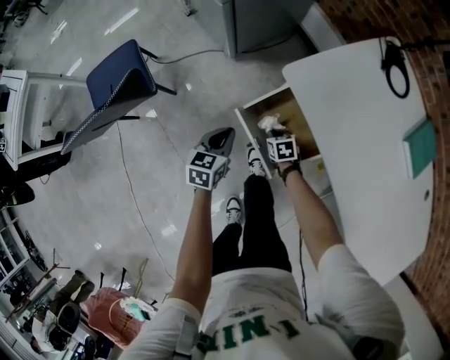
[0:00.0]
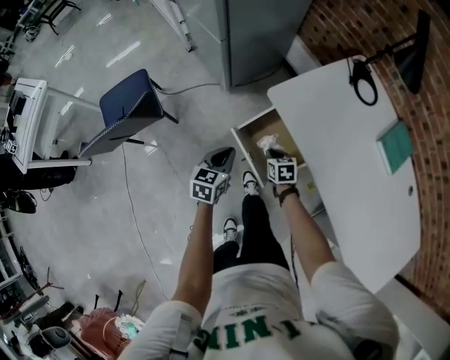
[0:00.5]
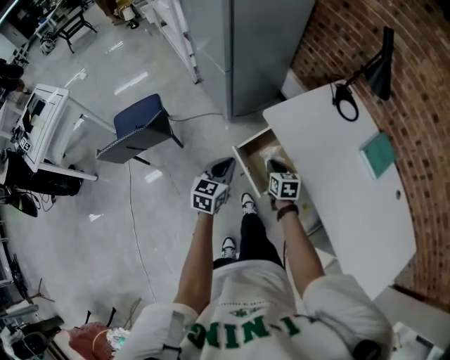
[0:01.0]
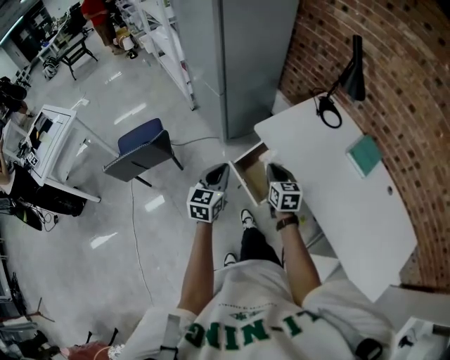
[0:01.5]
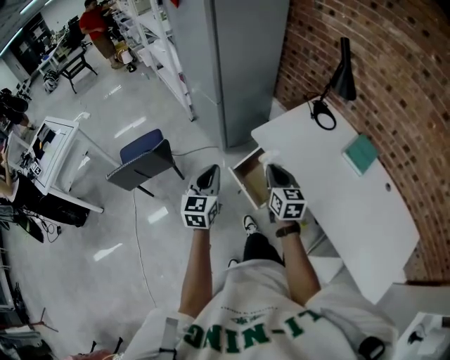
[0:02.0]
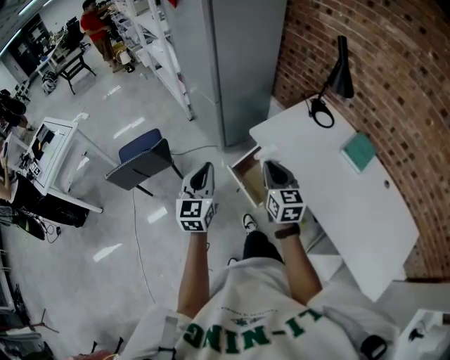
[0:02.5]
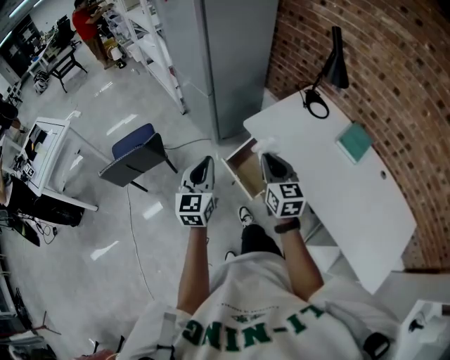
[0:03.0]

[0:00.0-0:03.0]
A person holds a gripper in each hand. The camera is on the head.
0:00.0 to 0:01.5: Both grippers travel together upward, about 35 cm. The left gripper rotates some 20 degrees. Meanwhile the right gripper tips its fingers upward by about 40 degrees.
0:01.5 to 0:03.0: The right gripper shifts some 15 cm upward and backward, while the left gripper heads upward, covering some 10 cm.

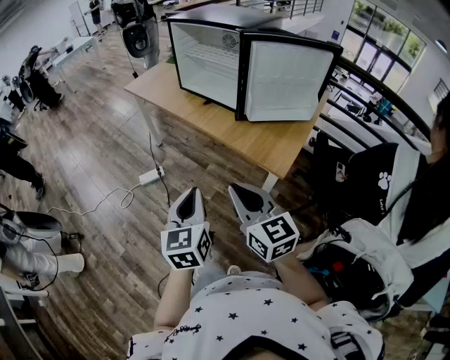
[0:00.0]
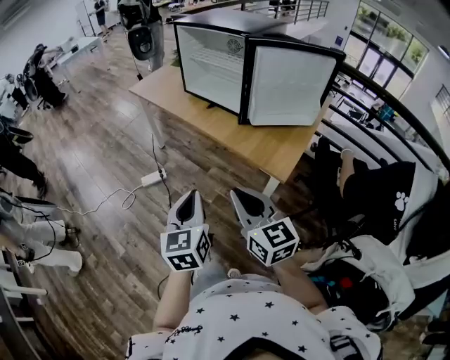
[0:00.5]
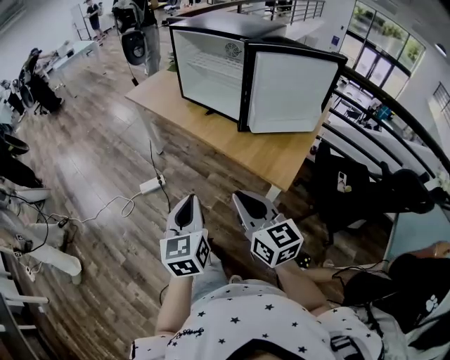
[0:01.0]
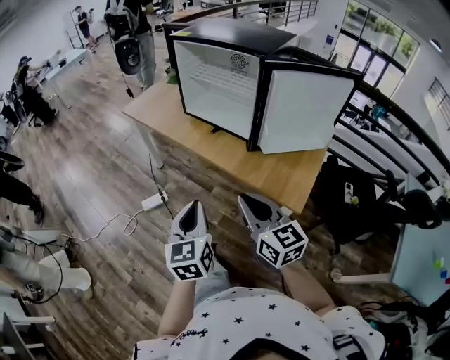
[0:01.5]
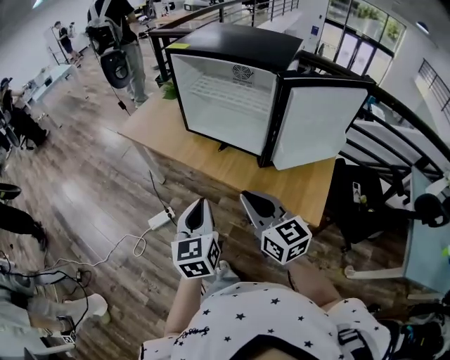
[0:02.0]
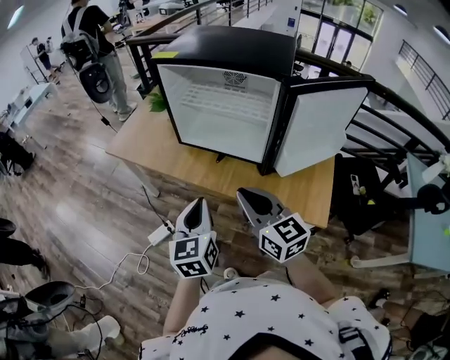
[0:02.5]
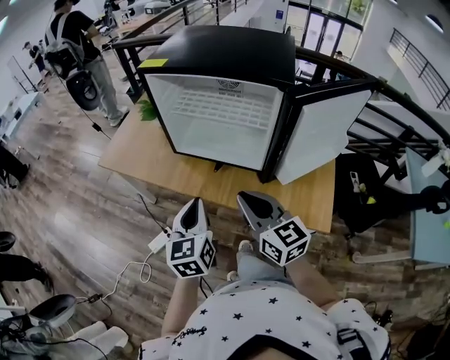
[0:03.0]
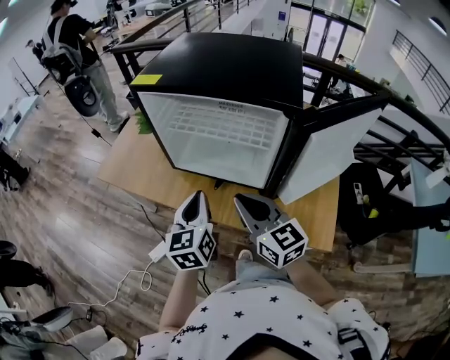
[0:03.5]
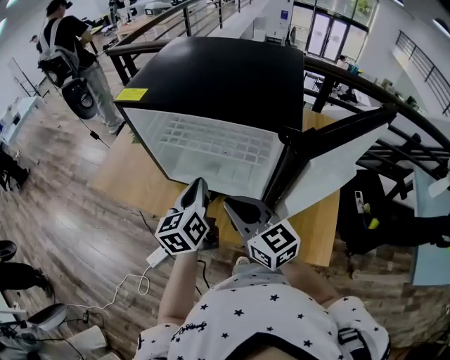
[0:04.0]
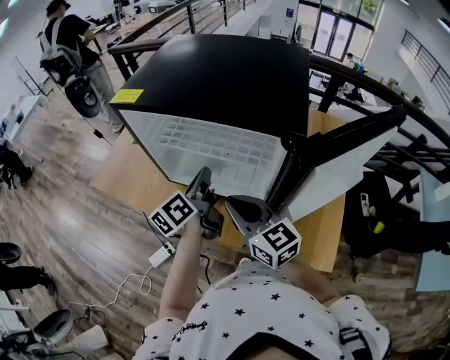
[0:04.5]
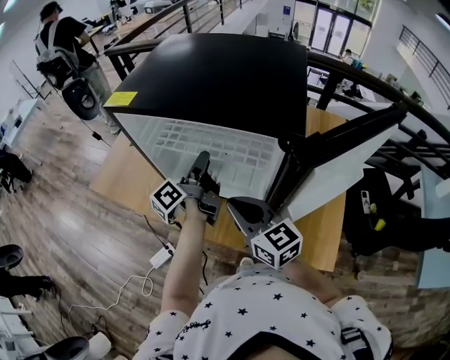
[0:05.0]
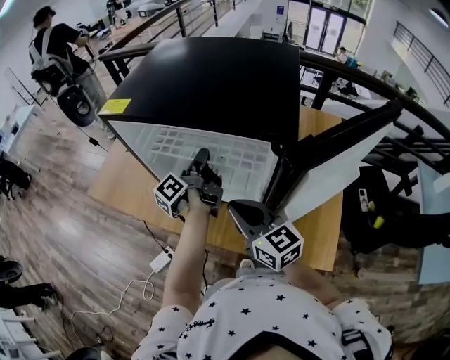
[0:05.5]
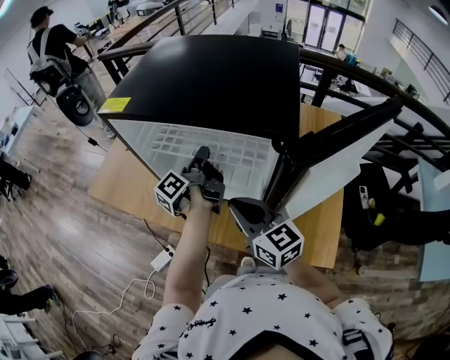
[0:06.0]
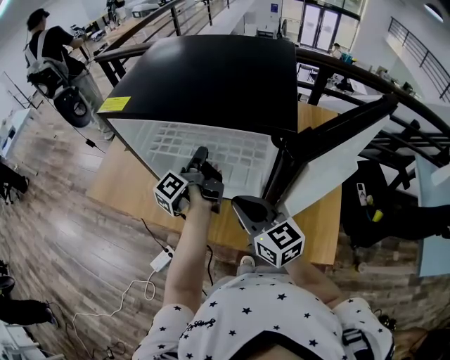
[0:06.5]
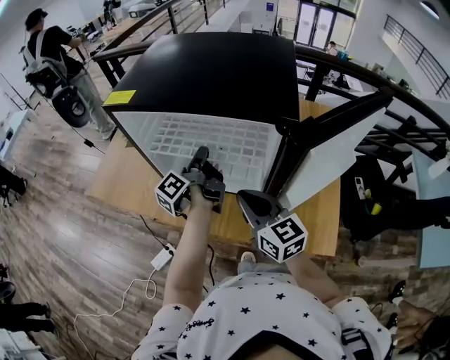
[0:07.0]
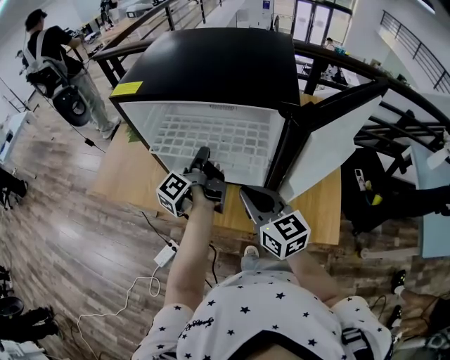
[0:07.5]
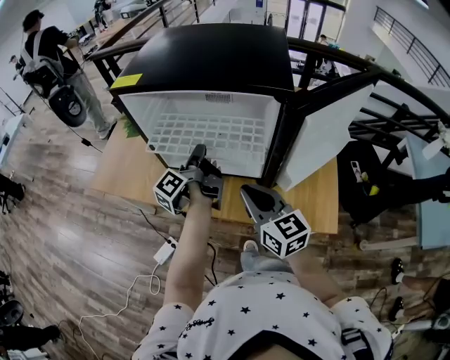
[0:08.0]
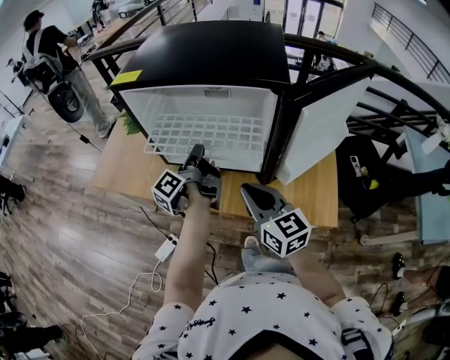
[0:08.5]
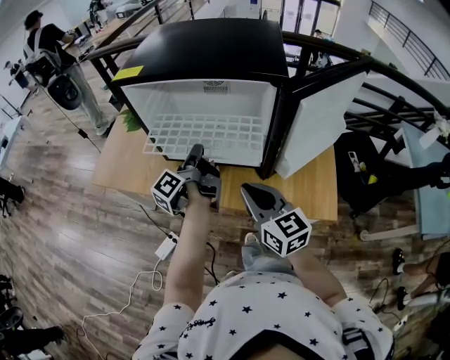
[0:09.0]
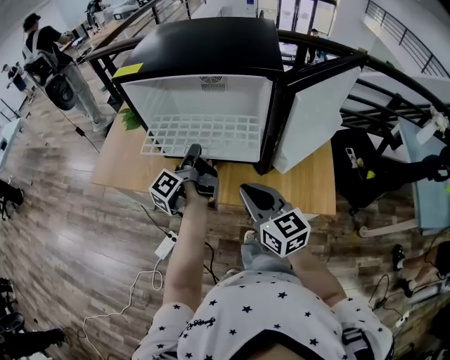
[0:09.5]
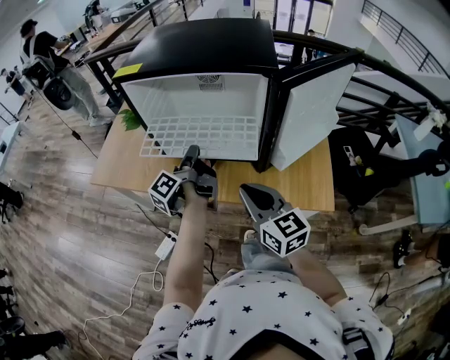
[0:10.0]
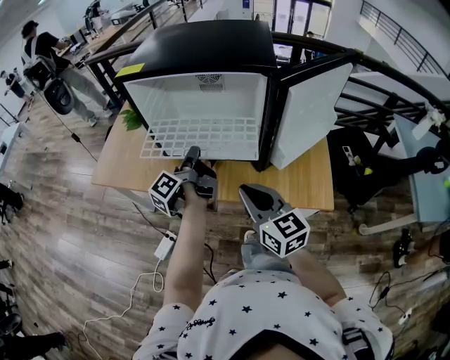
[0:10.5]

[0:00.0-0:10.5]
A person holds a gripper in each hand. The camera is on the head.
0:00.0 to 0:02.0: Both grippers travel together forward, about 25 cm.
0:02.0 to 0:04.0: Both grippers move forward, roughly 25 cm. The left gripper turns by some 20 degrees.
0:04.0 to 0:06.5: The right gripper changes place by roughly 5 cm; the left gripper shifts about 10 cm forward, twists about 60 degrees counterclockwise, seen from behind, and opens and closes again.
0:06.5 to 0:08.5: The two grippers go some 10 cm backward.
0:08.5 to 0:10.5: Both grippers travel together backward, some 5 cm.

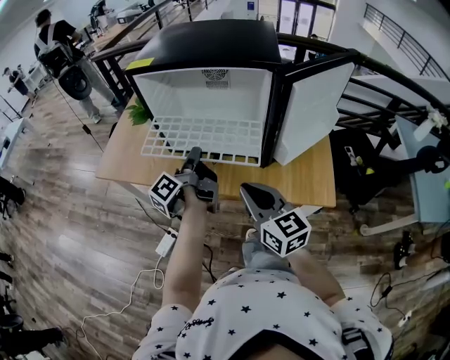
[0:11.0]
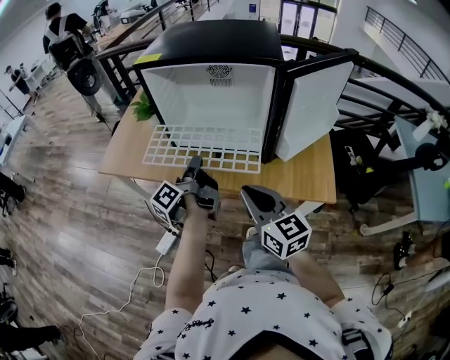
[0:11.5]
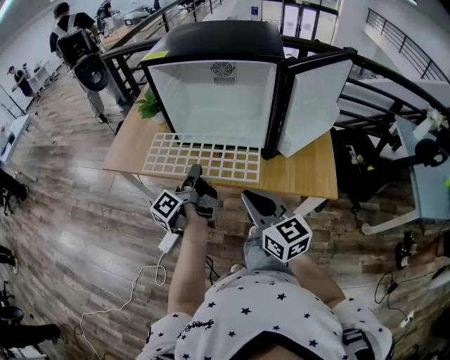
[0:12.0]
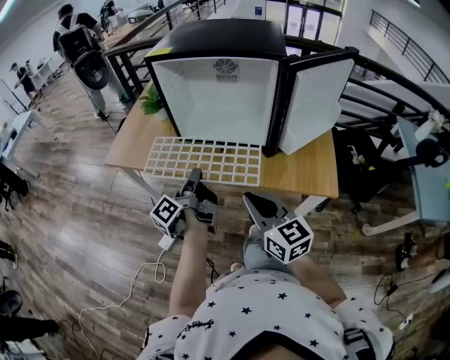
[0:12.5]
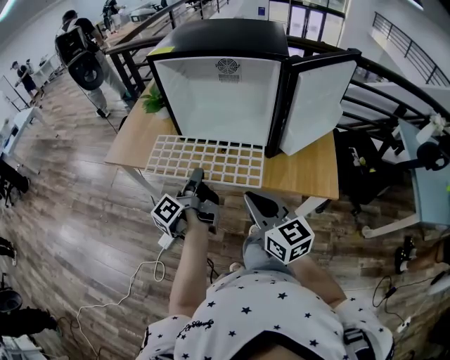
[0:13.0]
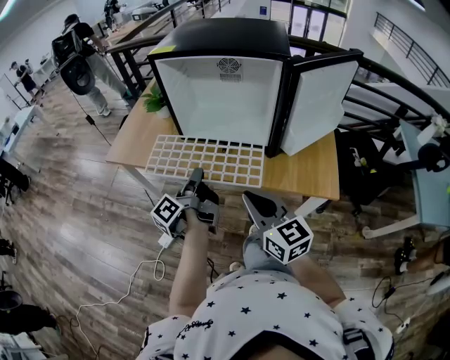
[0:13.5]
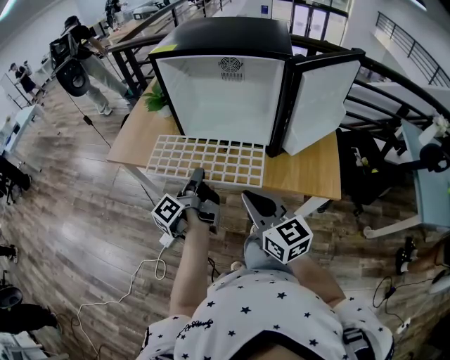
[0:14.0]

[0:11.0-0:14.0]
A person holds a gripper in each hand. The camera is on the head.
0:11.0 to 0:12.5: The right gripper goes approximately 10 cm backward. Meanwhile the left gripper moves backward and to the left, about 10 cm.
0:12.5 to 0:14.0: Both grippers stay put.

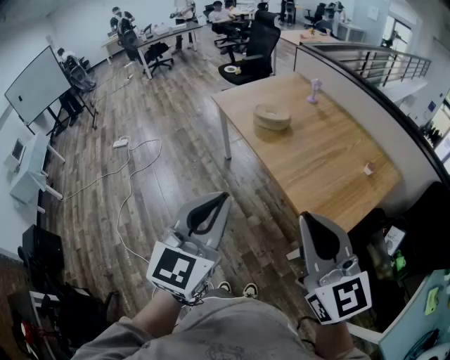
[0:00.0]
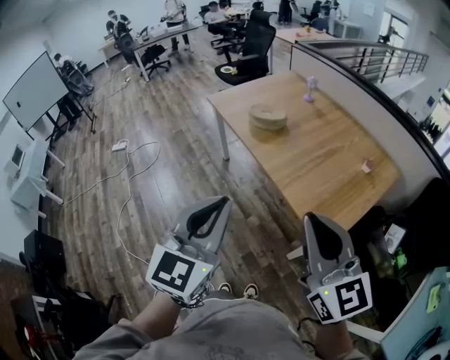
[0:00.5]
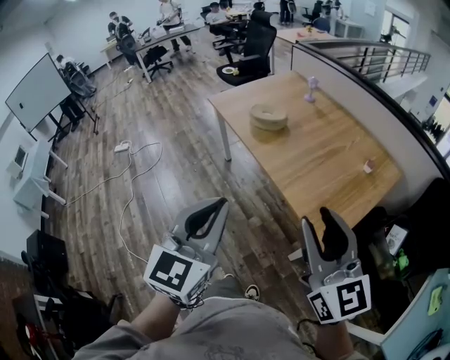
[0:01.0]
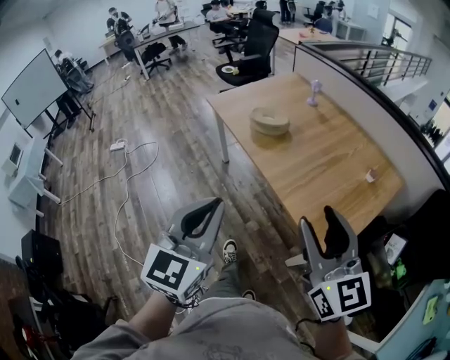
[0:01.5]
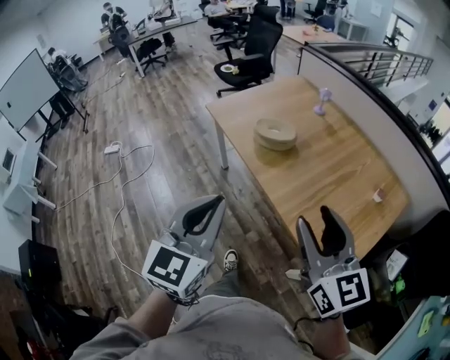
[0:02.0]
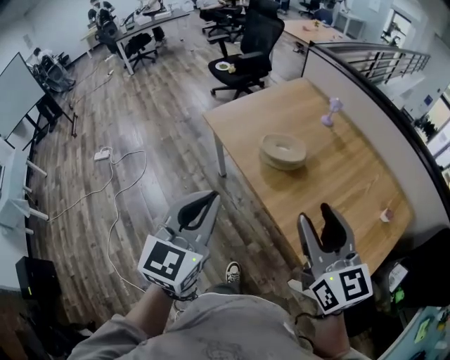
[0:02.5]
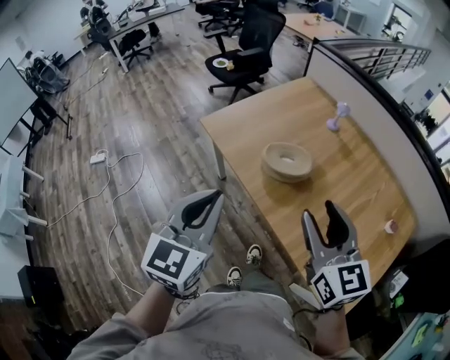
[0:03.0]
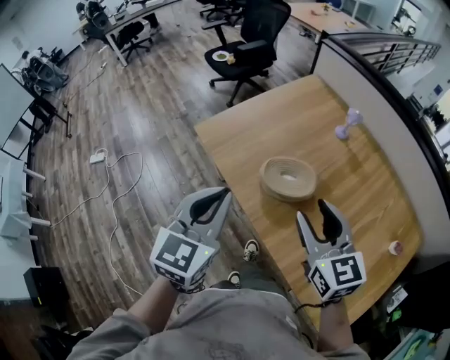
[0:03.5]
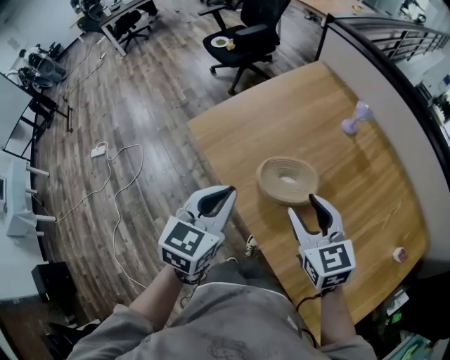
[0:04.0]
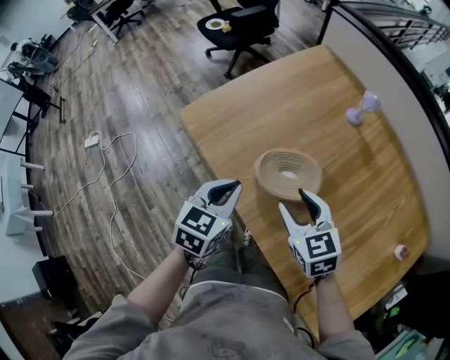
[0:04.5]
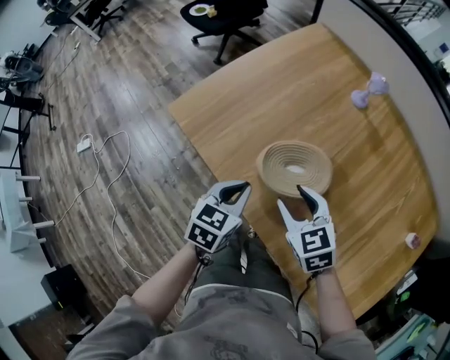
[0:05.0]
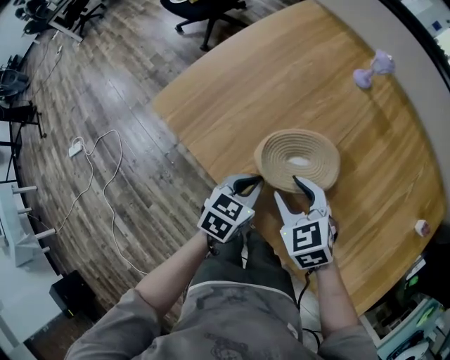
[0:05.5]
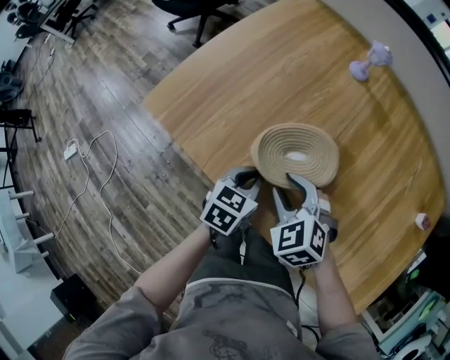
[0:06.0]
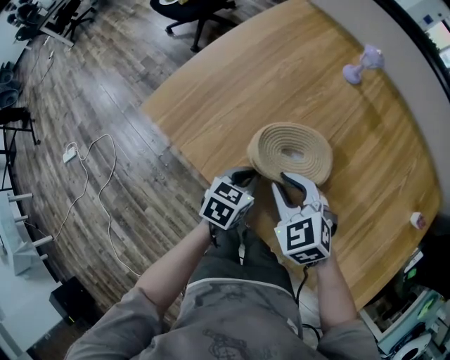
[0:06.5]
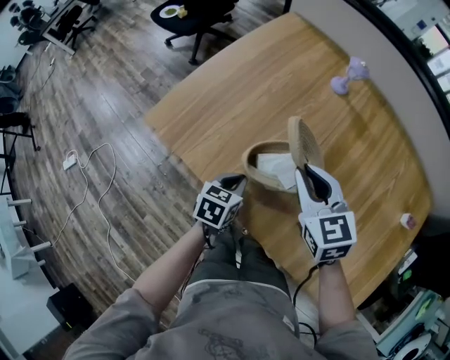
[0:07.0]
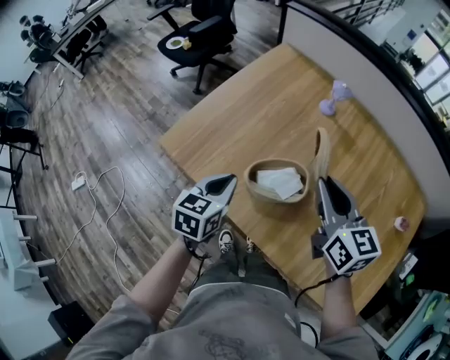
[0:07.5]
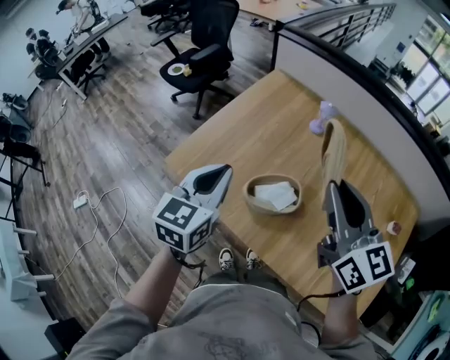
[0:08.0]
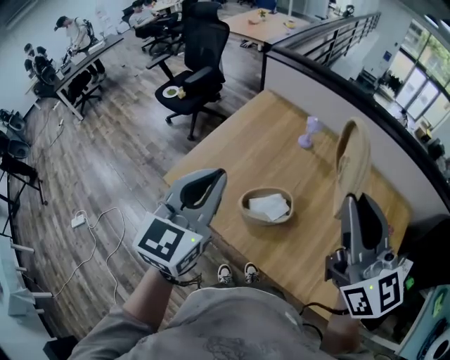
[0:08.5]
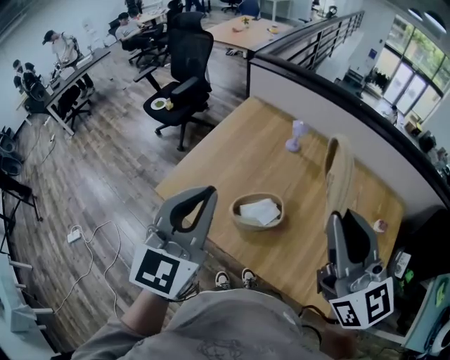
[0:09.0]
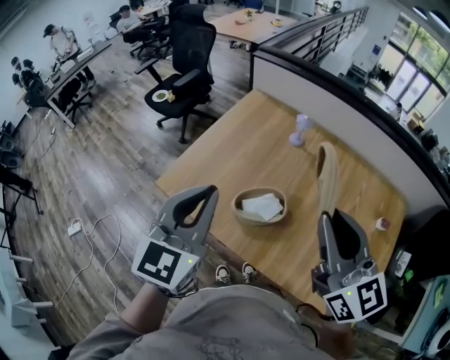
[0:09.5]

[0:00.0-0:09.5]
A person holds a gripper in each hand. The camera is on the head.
0:00.0 to 0:02.0: The two grippers go roughly 20 cm forward. The right gripper opens.
0:02.0 to 0:04.0: The two grippers travel together, forward, about 50 cm. The right gripper turns by approximately 30 degrees, while the left gripper changes its angle by about 20 degrees.
0:04.0 to 0:05.5: The grippers both shift downward by some 20 cm. The left gripper turns by some 30 degrees. Meanwhile the right gripper turns by roughly 20 degrees.
0:05.5 to 0:07.5: The left gripper moves upward, some 15 cm, while the right gripper goes about 25 cm upward and to the right, swivels about 40 degrees, and closes.
0:07.5 to 0:09.5: The left gripper shifts approximately 30 cm upward, and swivels some 30 degrees, while the right gripper goes about 25 cm upward and backward, and rotates roughly 20 degrees.
